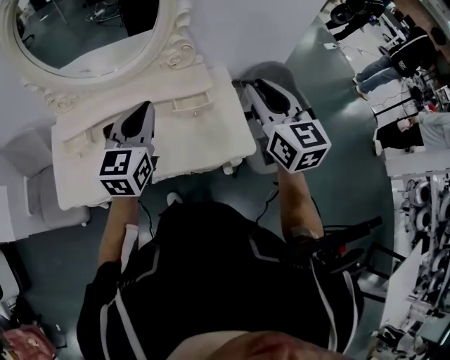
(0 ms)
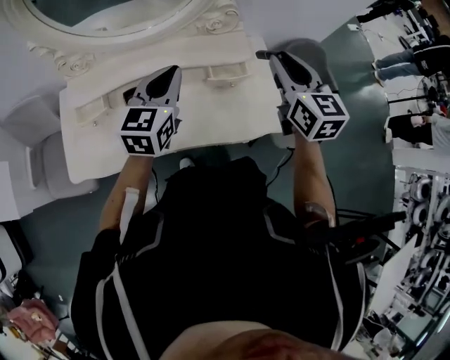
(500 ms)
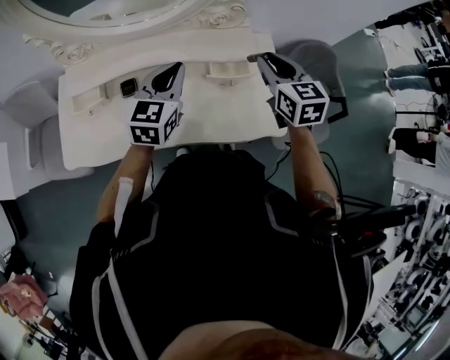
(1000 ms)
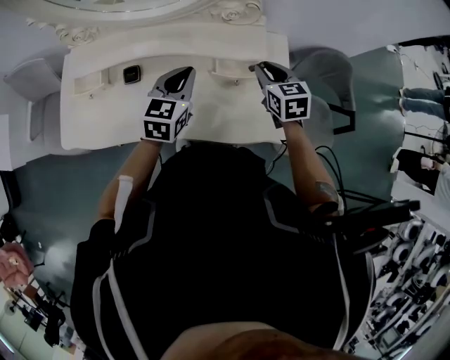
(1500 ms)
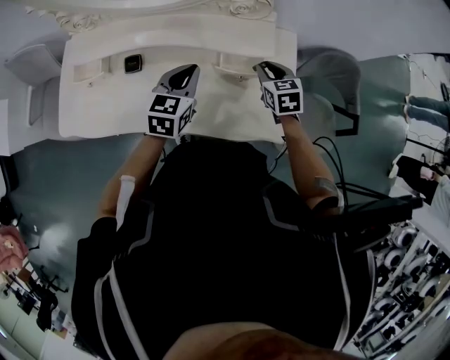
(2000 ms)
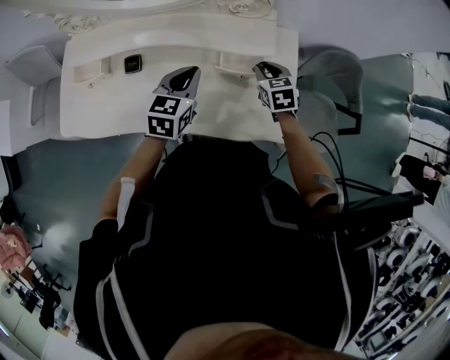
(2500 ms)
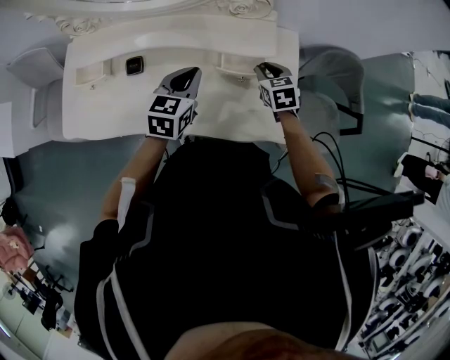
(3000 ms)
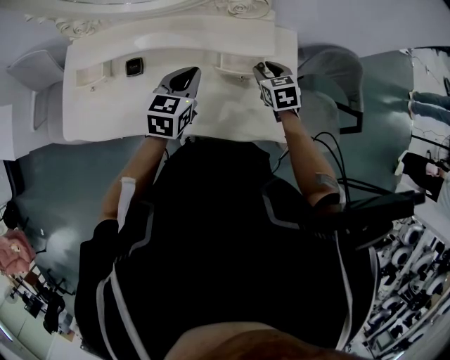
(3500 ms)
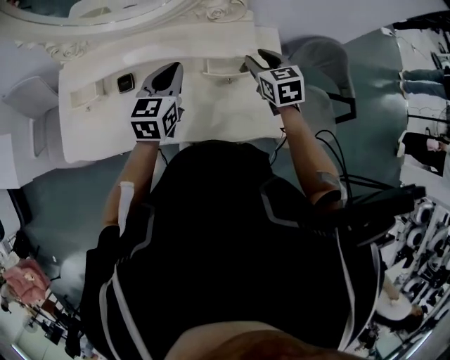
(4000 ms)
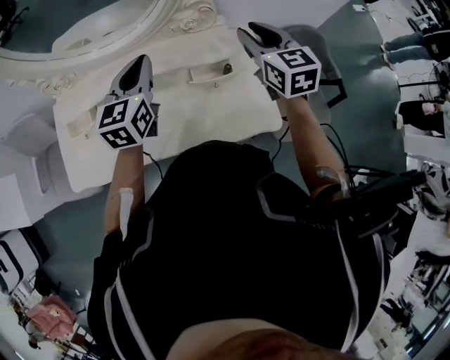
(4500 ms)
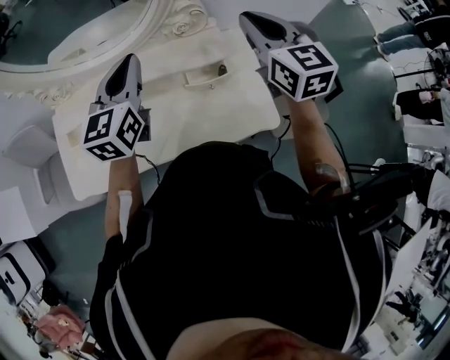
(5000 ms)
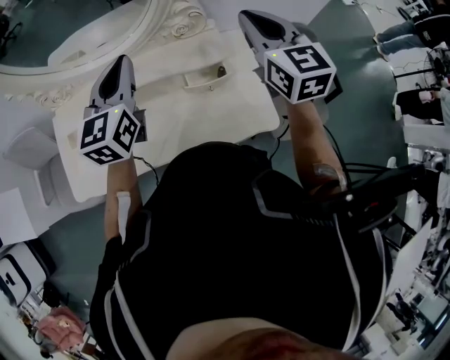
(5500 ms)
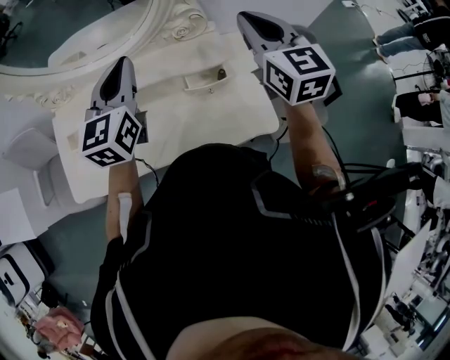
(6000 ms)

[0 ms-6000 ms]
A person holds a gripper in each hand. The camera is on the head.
0 ms to 2000 ms: The left gripper shifts approximately 25 cm downward and forward, and turns by approximately 20 degrees, while the right gripper heads downward and forward, covering approximately 35 cm, and points its fingers about 40 degrees further downward.
2000 ms to 4000 ms: The right gripper travels upward by approximately 5 cm.
4000 ms to 6000 ms: Both grippers travel together upward, about 20 cm. The right gripper rotates roughly 30 degrees, and closes its fingers.

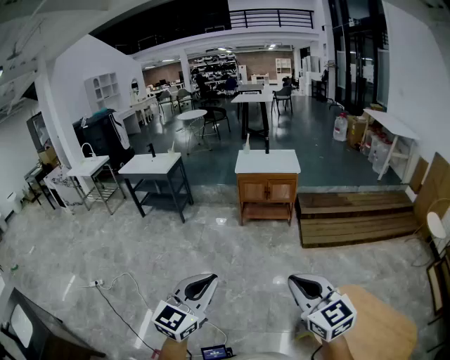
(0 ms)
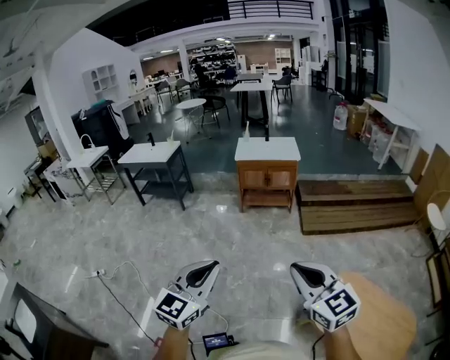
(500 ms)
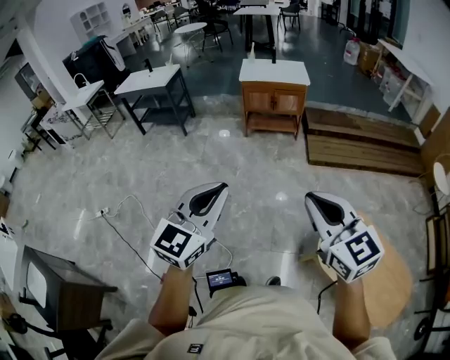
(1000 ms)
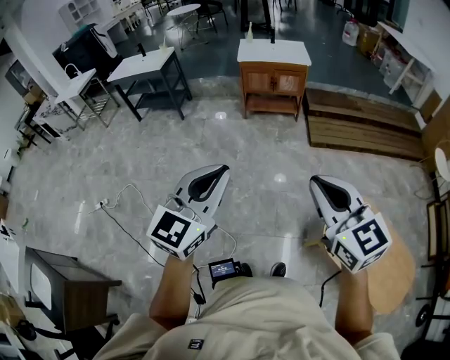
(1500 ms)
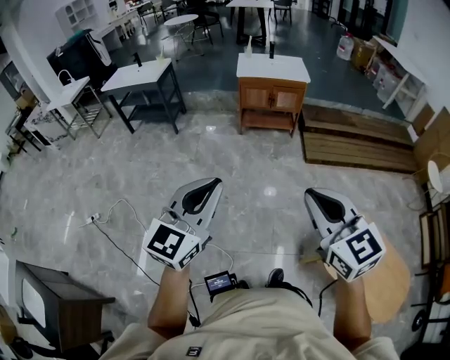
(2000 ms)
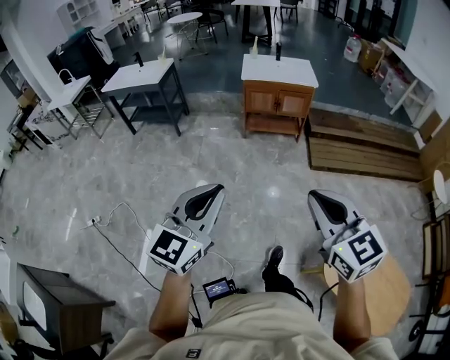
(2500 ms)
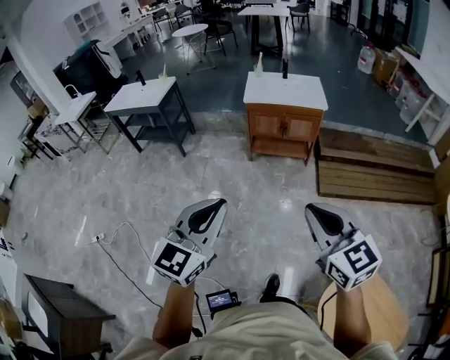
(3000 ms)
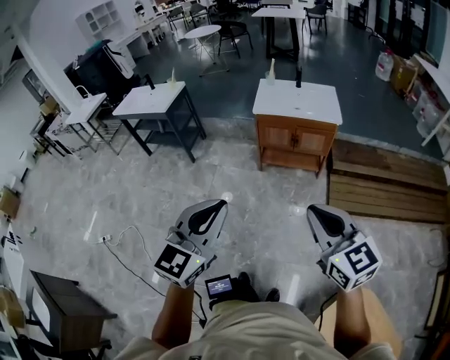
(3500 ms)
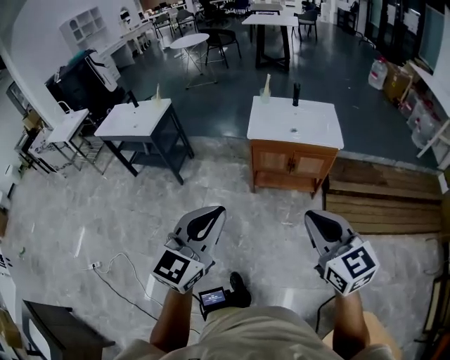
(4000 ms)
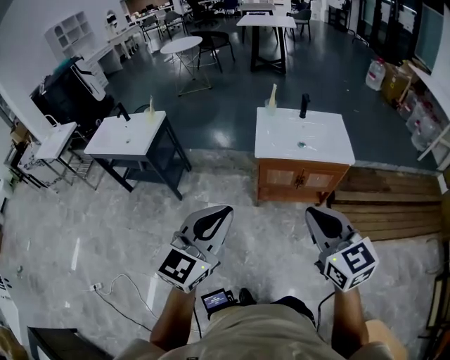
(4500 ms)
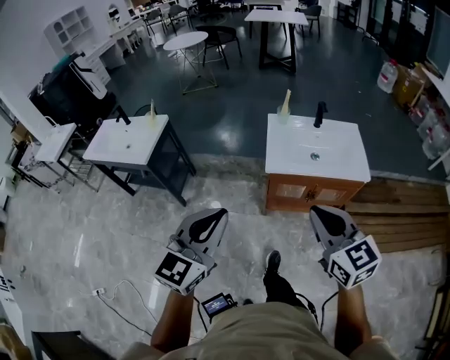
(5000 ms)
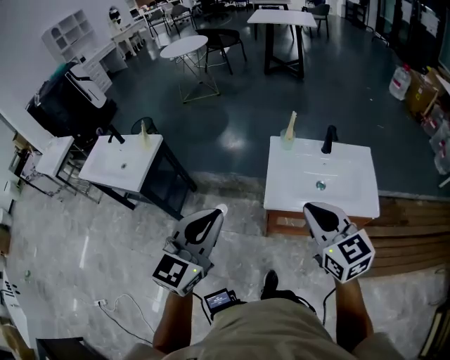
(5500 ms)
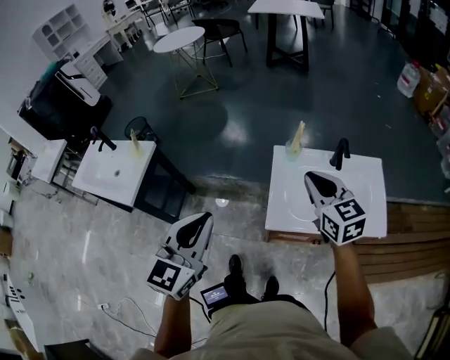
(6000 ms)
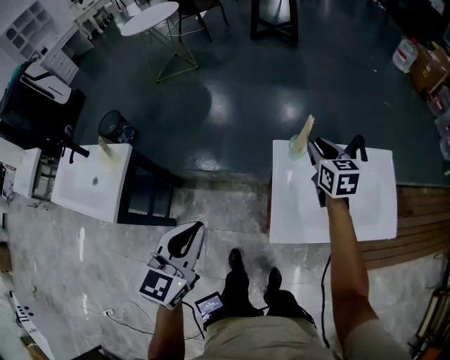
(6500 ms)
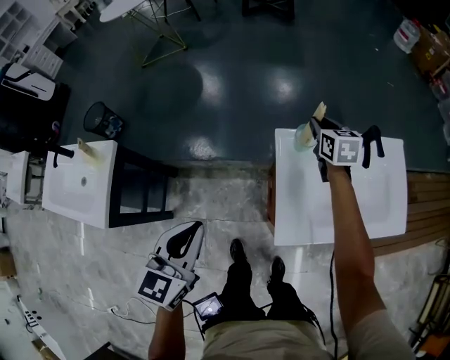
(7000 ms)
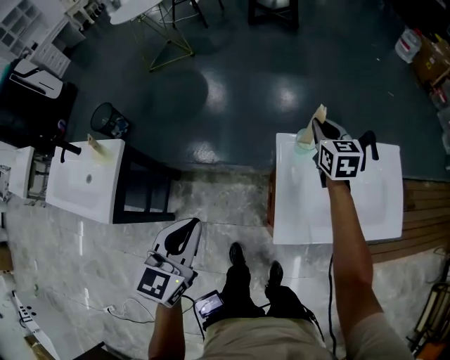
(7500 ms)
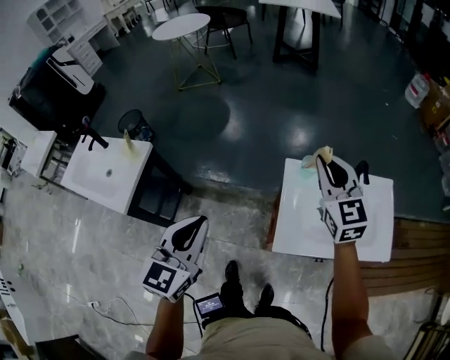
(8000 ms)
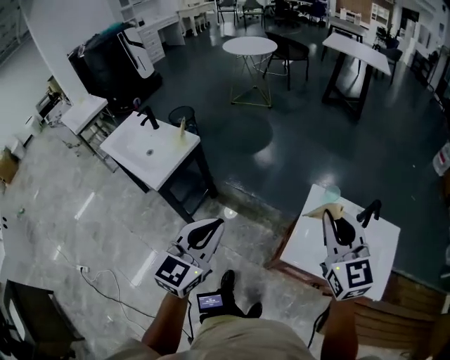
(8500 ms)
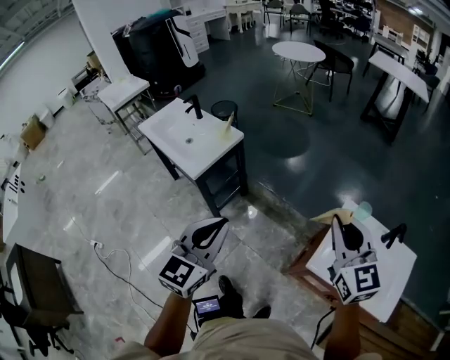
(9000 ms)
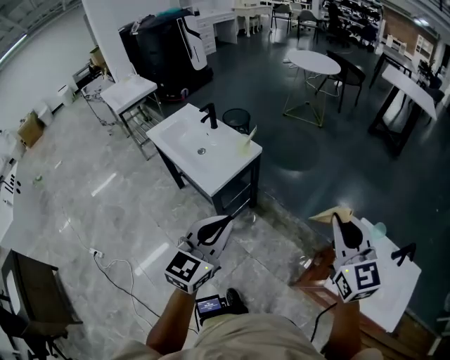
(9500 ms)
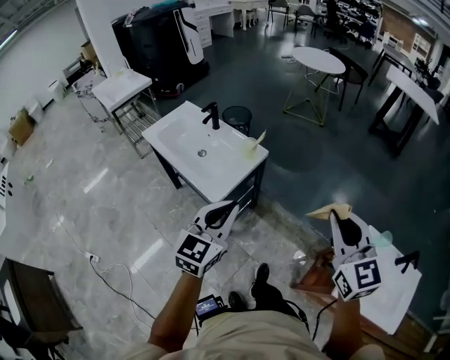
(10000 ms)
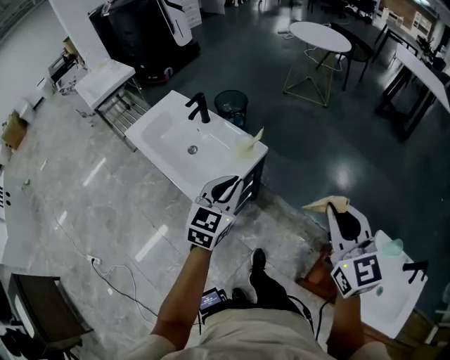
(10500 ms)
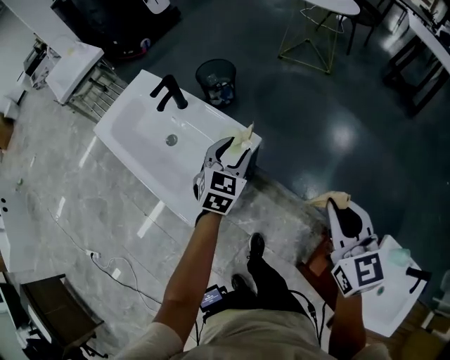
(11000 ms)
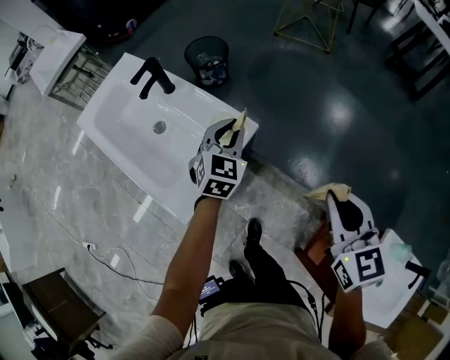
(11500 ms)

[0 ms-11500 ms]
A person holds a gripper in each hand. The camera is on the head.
0 ms to 2000 ms: The right gripper travels to the left and forward by approximately 15 cm. Meanwhile the left gripper shifts about 15 cm forward and to the left.
2000 ms to 4000 ms: The two grippers travel together, forward, approximately 60 cm.
4000 ms to 6000 ms: Both grippers are carried forward, some 70 cm.
6000 ms to 7500 ms: The right gripper heads forward and downward, covering about 35 cm, and rotates about 20 degrees. Meanwhile the left gripper moves forward, downward and to the left, about 25 cm.
7500 ms to 9500 ms: The right gripper changes place by approximately 60 cm, and rotates approximately 50 degrees; the left gripper moves about 35 cm, and changes its angle by about 30 degrees.
9500 ms to 11500 ms: Both grippers move forward and downward, roughly 50 cm. The right gripper changes its angle by roughly 20 degrees; the left gripper turns by about 20 degrees, and opens, then closes again.

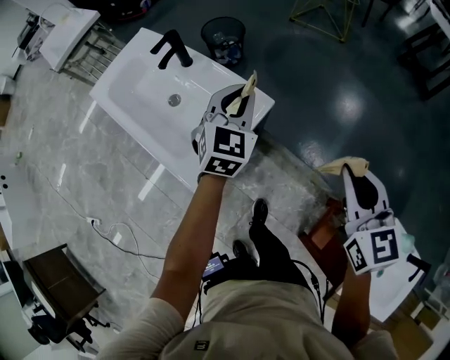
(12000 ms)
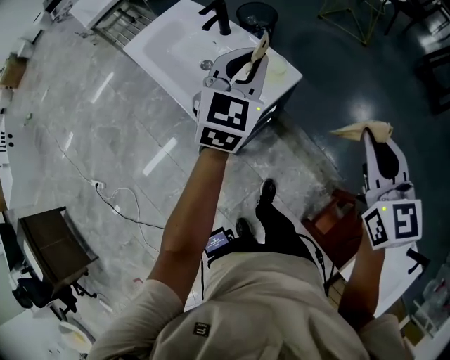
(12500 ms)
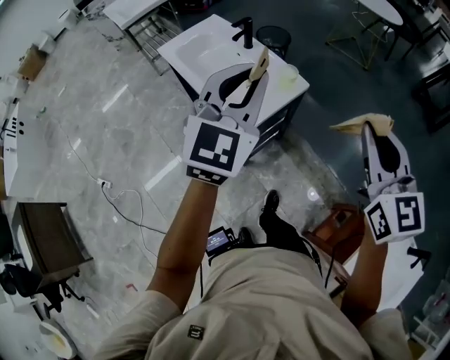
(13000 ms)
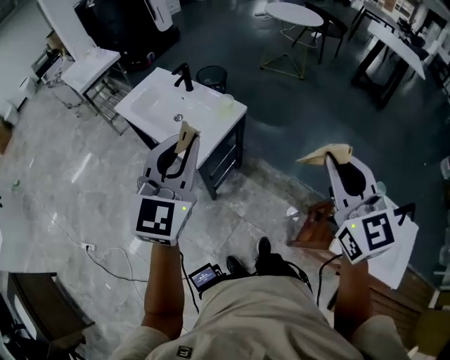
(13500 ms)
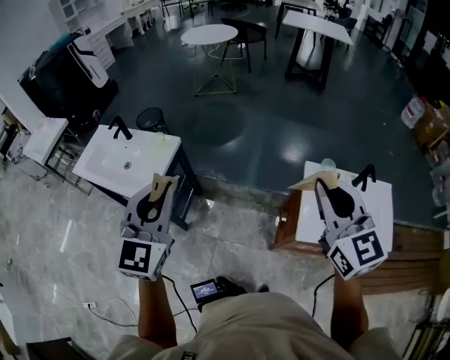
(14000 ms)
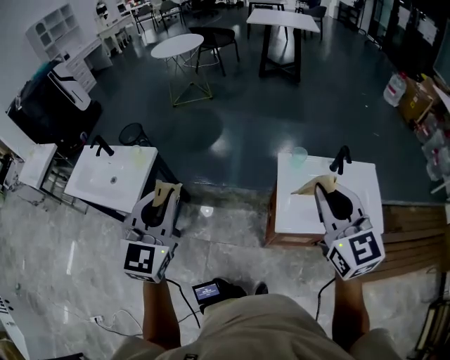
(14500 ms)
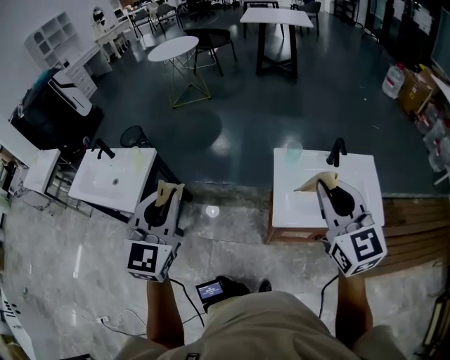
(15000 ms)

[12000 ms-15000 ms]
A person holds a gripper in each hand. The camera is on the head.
12000 ms to 13500 ms: The two grippers go roughly 40 cm backward and upward.
13500 ms to 15000 ms: The left gripper changes place by about 35 cm, and turns by about 20 degrees. The right gripper ends up roughly 40 cm from where it was, and turns by some 30 degrees.

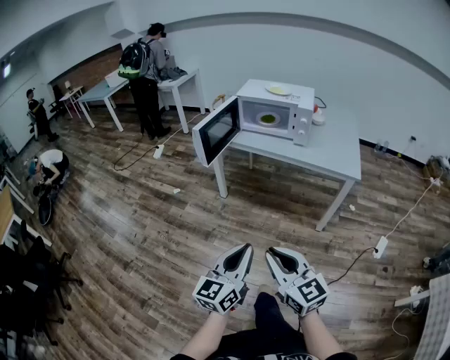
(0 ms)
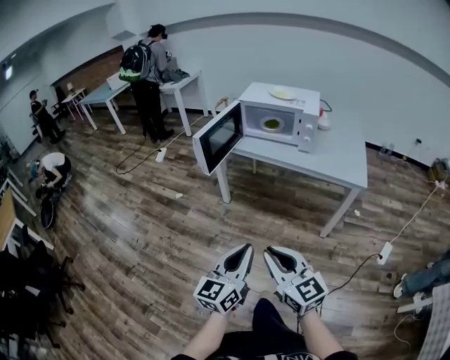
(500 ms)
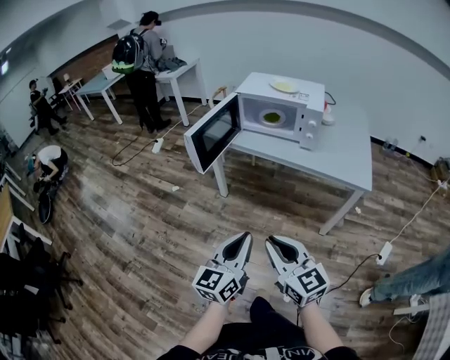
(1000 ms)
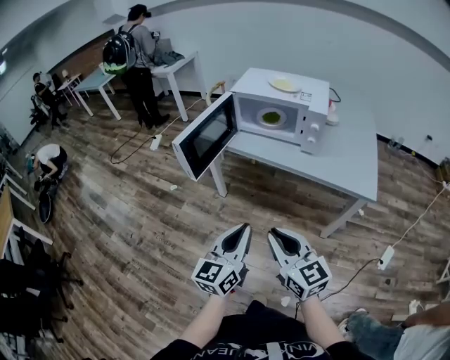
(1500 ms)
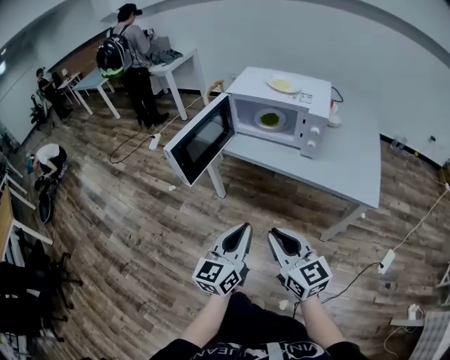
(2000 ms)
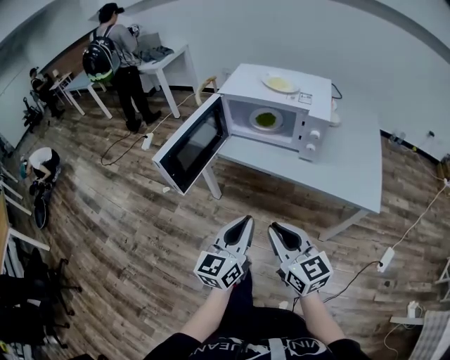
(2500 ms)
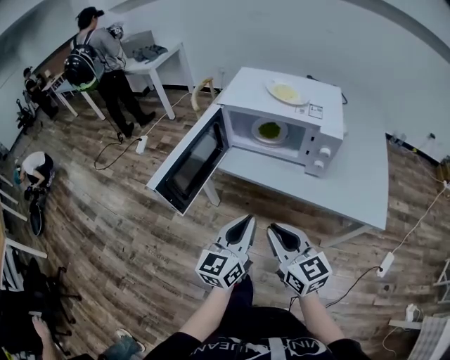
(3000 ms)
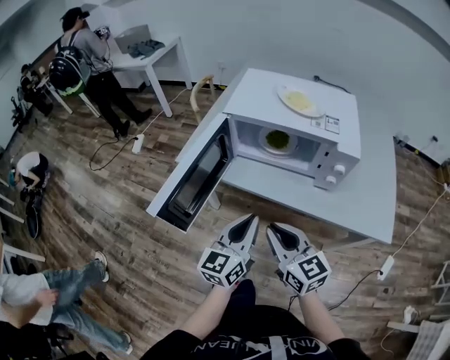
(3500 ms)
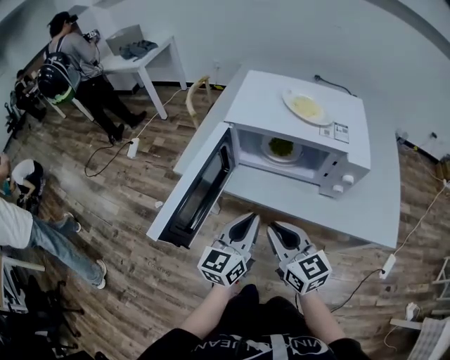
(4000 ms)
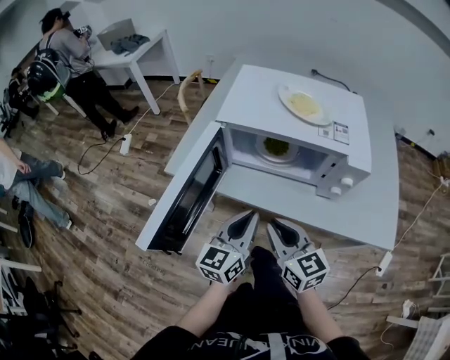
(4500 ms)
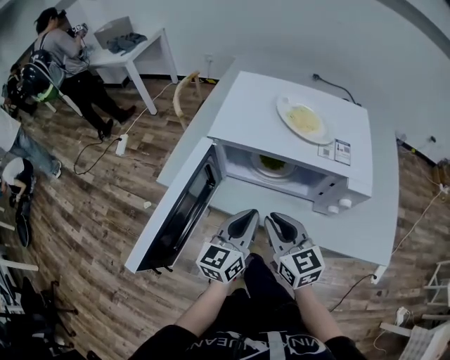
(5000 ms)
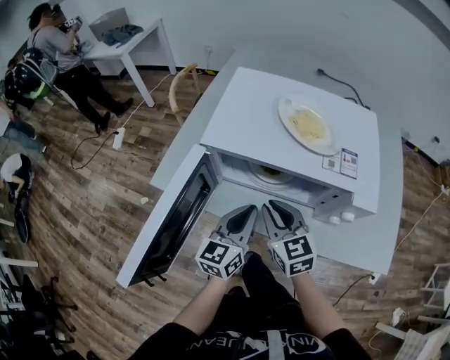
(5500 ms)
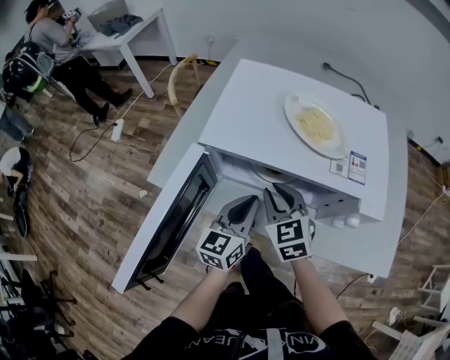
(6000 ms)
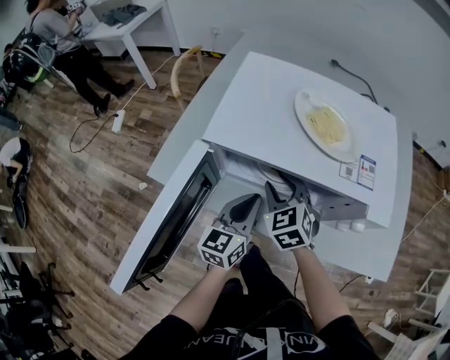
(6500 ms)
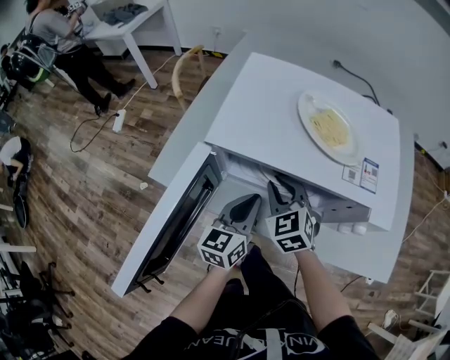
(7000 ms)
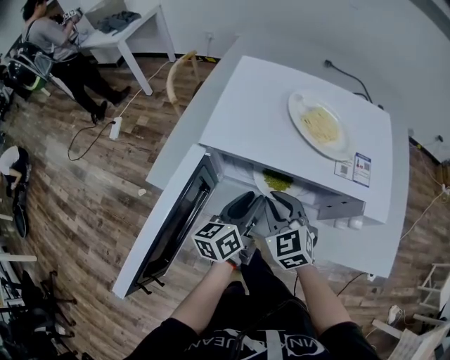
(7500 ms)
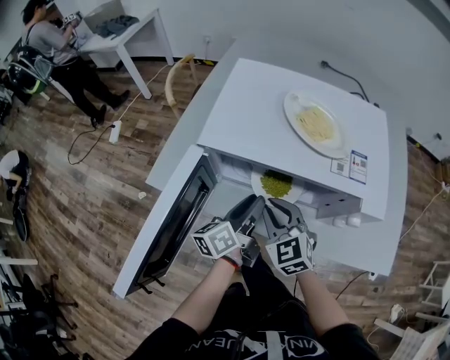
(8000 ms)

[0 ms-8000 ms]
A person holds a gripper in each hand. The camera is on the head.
0 ms to 2000 ms: The grippers both shift forward by approximately 25 cm.
2000 ms to 4000 ms: The two grippers go roughly 30 cm forward.
4000 ms to 6000 ms: The two grippers go approximately 20 cm forward. The right gripper turns by some 30 degrees.
6000 ms to 8000 ms: The left gripper swivels approximately 40 degrees, and opens its fingers.
